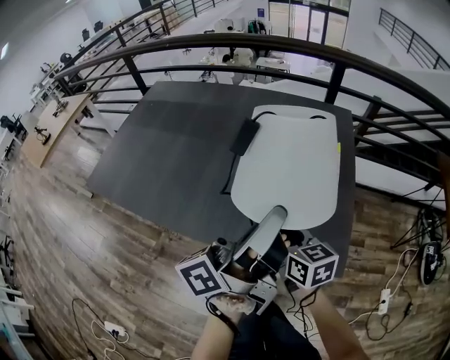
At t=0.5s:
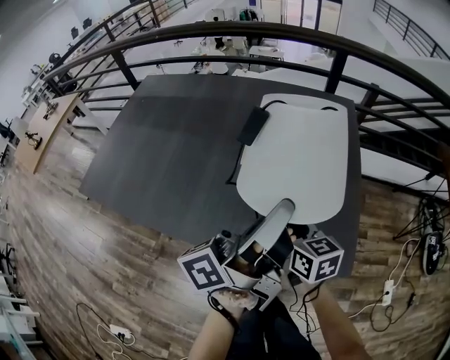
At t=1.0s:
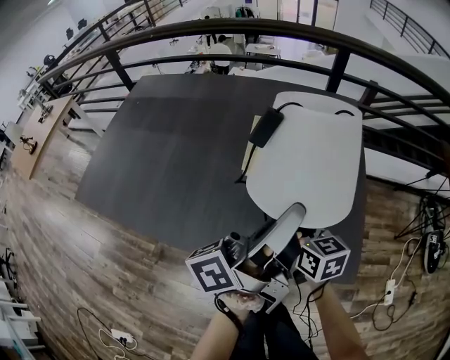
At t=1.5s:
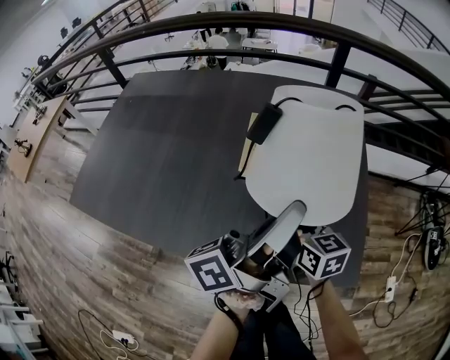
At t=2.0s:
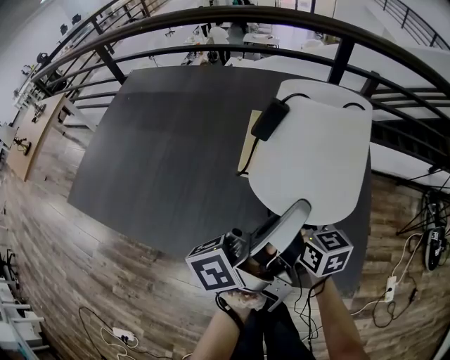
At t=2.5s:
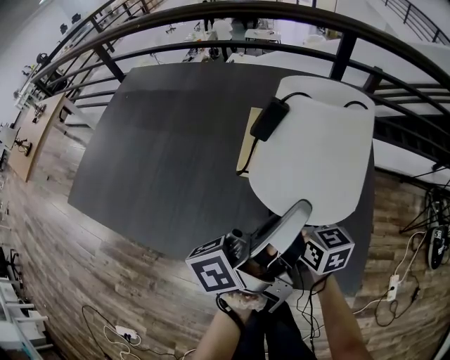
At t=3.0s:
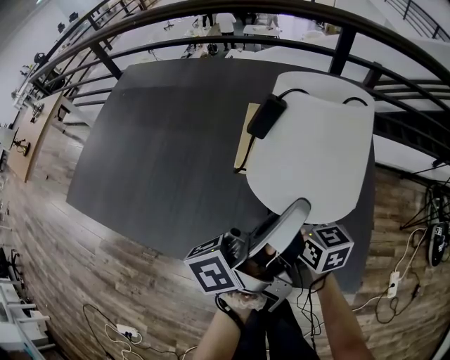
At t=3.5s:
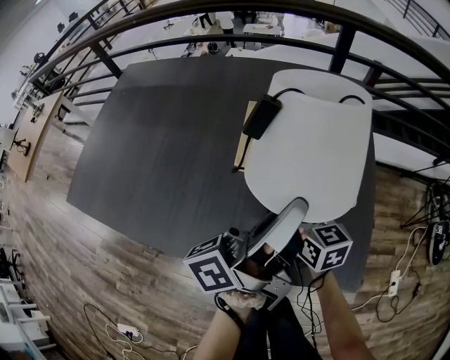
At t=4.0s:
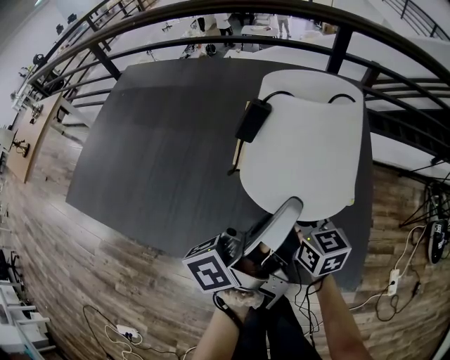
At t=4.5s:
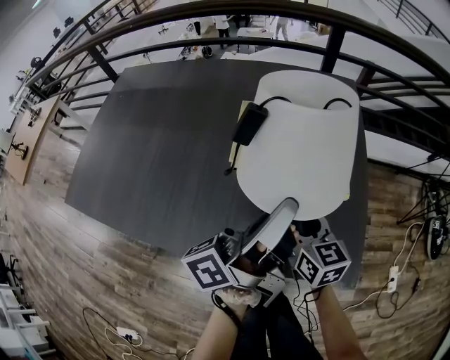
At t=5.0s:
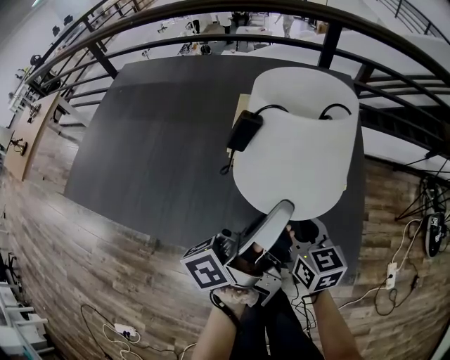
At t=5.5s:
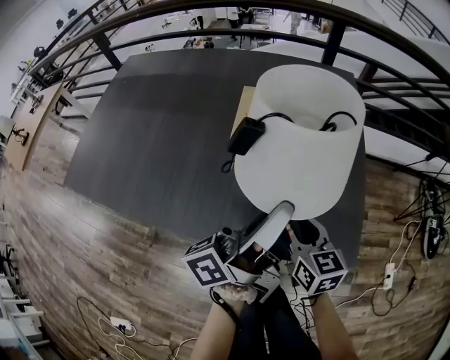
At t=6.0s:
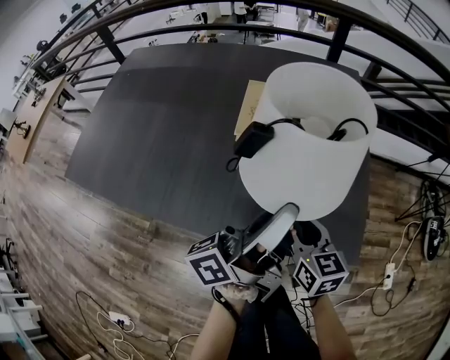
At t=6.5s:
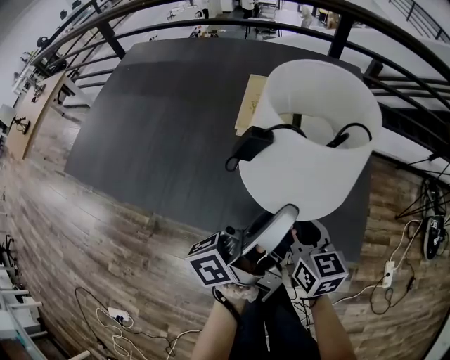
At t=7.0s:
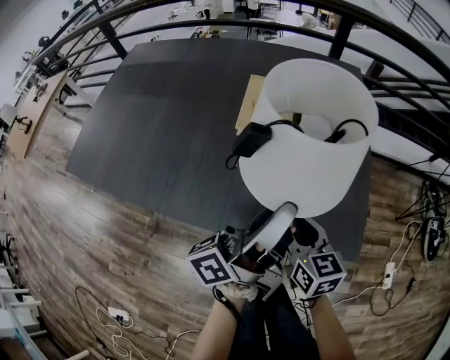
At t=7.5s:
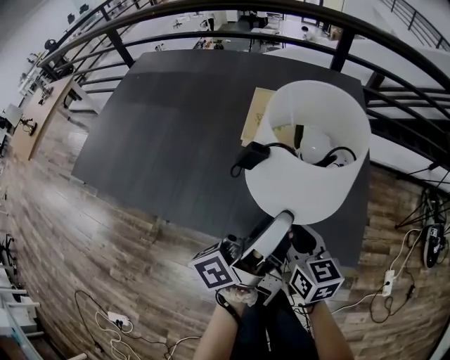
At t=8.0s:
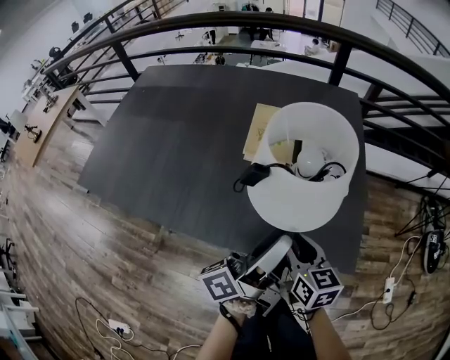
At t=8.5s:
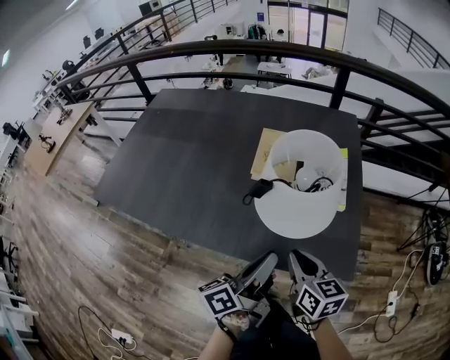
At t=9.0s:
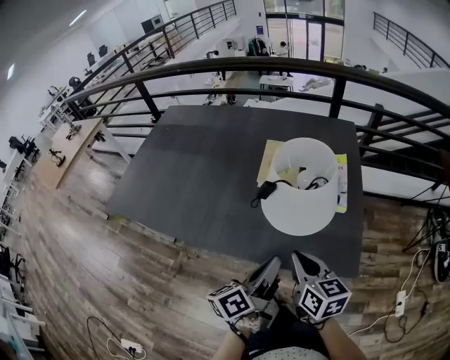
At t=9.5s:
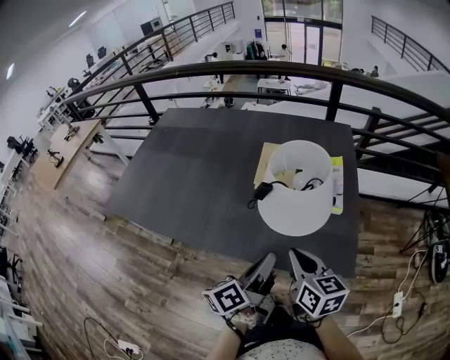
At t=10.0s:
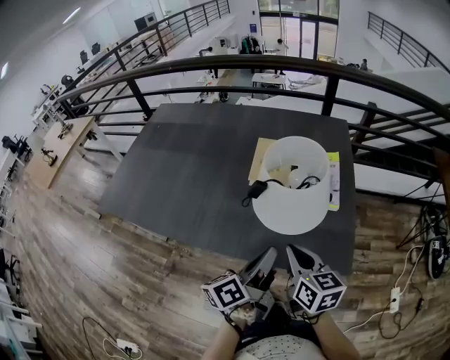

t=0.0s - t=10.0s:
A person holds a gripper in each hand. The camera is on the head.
t=0.0s - t=2.0s: The two grippers go about 15 cm forward and downward.
t=2.0s - t=4.0s: The grippers make only small movements.
t=4.0s - t=6.0s: Both grippers move backward, about 10 cm.
t=6.0s - t=8.0s: The left gripper opens its fingers.
t=8.0s - t=10.0s: The right gripper goes roughly 10 cm upward, and closes. Meanwhile the left gripper rotates approximately 20 degrees, and closes up.

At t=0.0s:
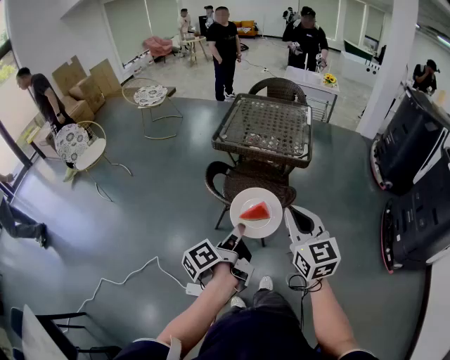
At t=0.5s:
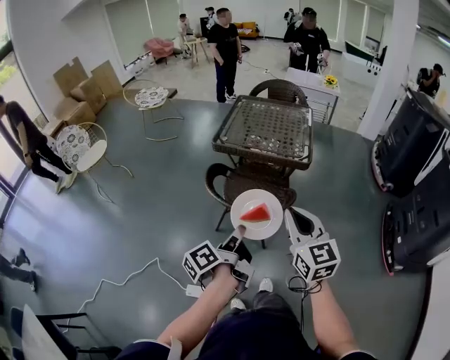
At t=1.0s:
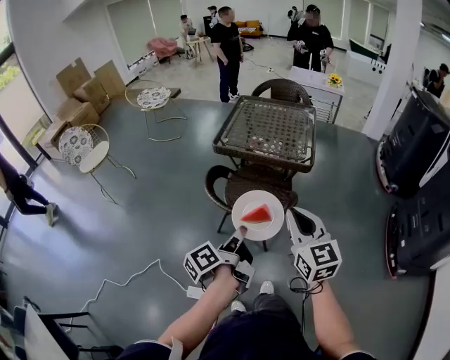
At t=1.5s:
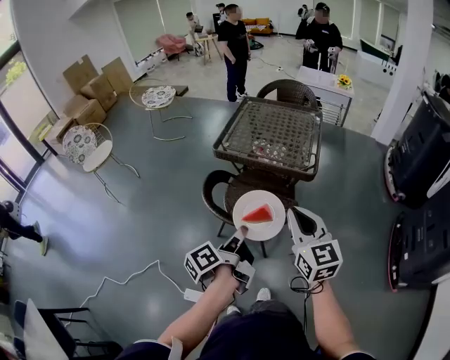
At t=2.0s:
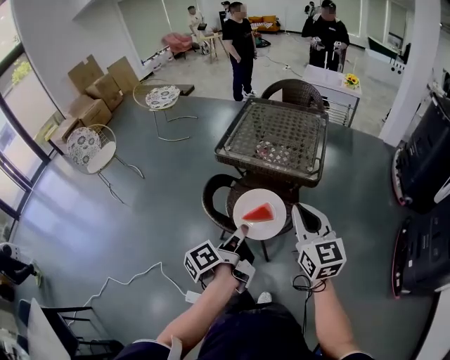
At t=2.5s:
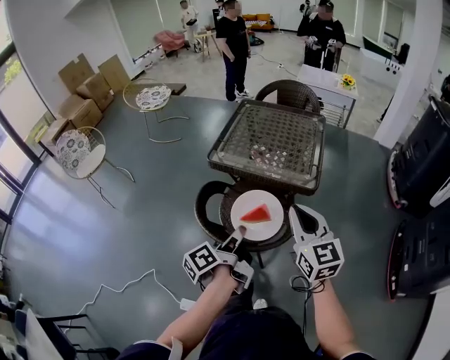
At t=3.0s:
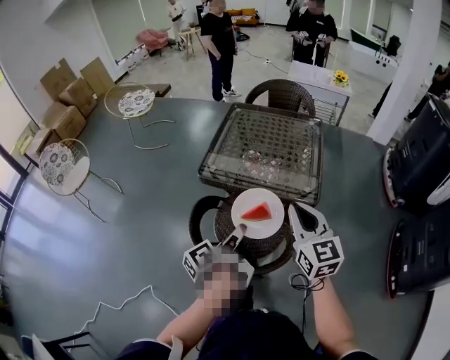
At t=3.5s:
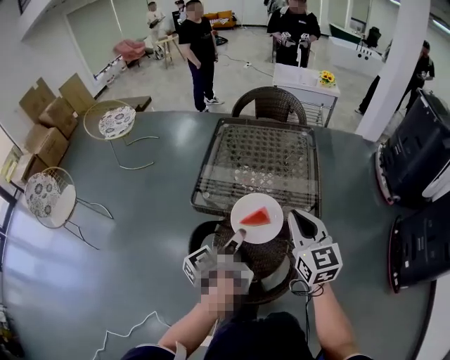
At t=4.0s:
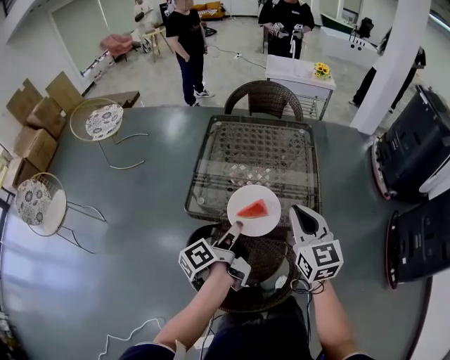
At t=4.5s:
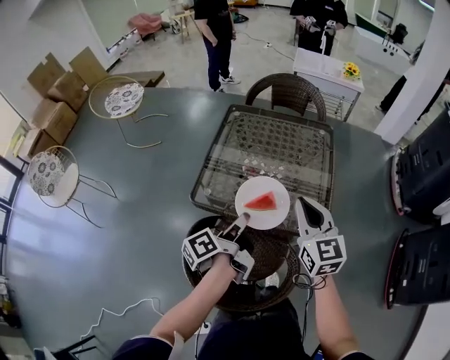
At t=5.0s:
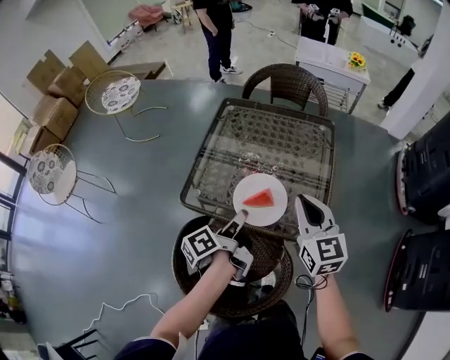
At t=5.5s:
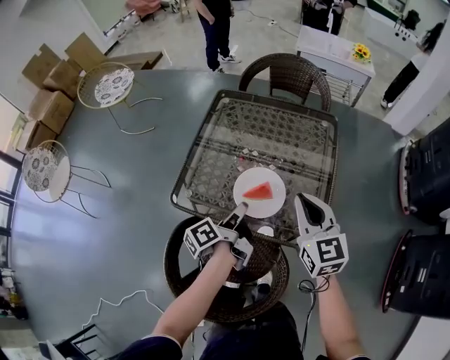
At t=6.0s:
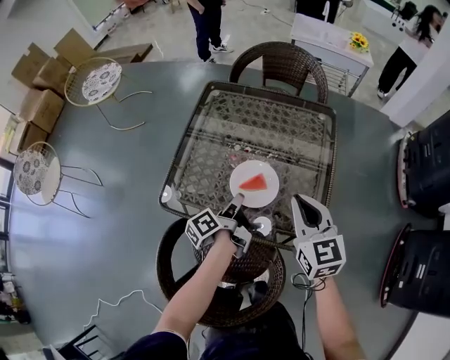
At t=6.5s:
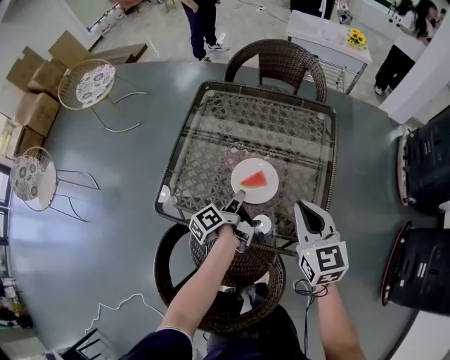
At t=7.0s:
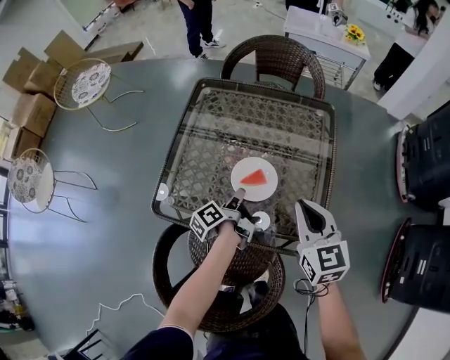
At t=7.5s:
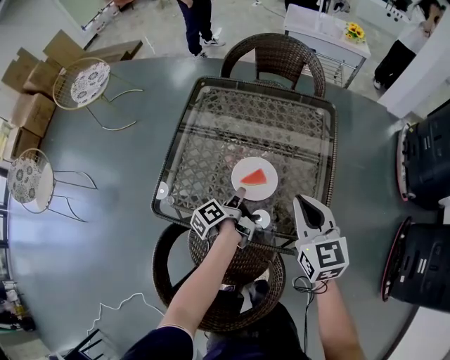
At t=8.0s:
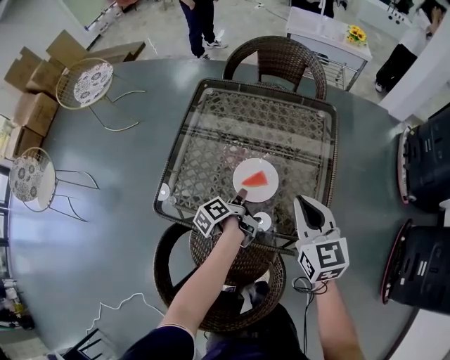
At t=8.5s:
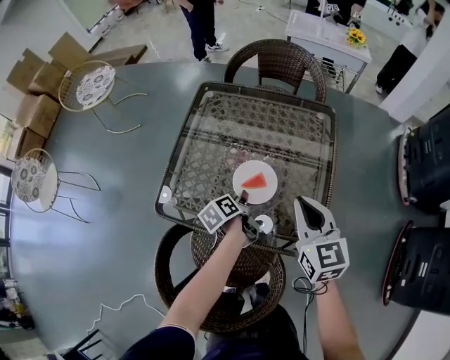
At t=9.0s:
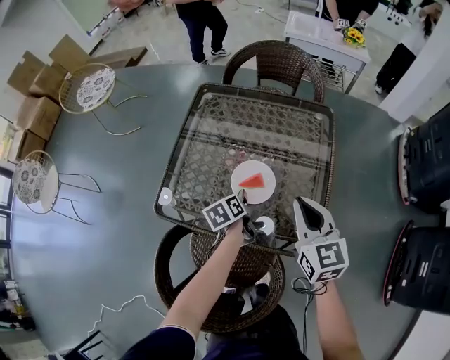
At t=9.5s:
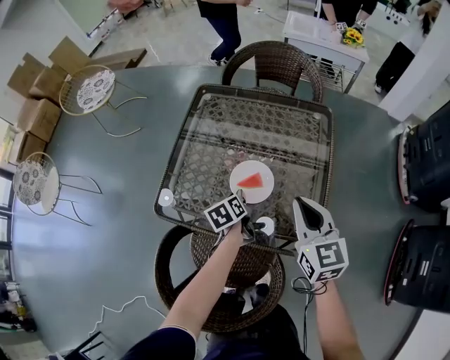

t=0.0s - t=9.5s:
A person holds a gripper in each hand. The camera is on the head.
t=0.0s - t=2.0s: Both grippers travel together forward and to the right, about 15 cm.
t=2.0s - t=4.0s: The two grippers go about 35 cm forward.
t=4.0s - t=5.5s: The grippers both shift forward, downward and to the right by approximately 15 cm.
t=5.5s - t=7.5s: The right gripper shifts about 5 cm downward, while the left gripper is displaced downward and forward by roughly 15 cm.
t=7.5s - t=9.5s: The left gripper turns by some 40 degrees.

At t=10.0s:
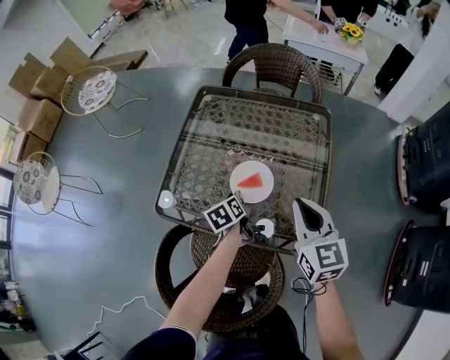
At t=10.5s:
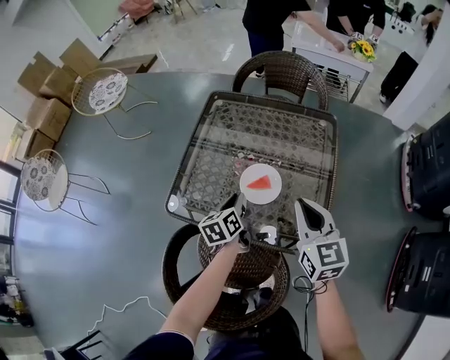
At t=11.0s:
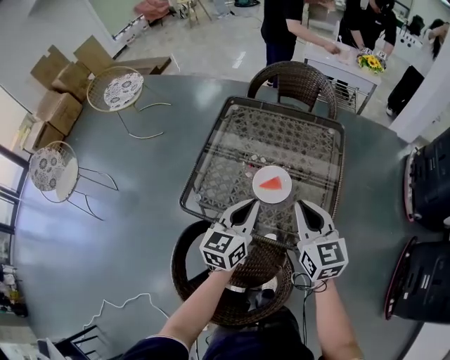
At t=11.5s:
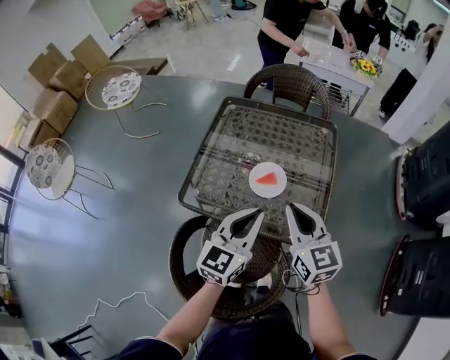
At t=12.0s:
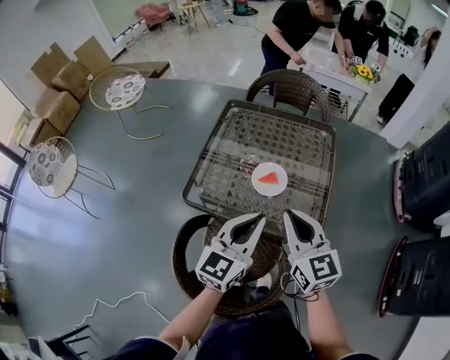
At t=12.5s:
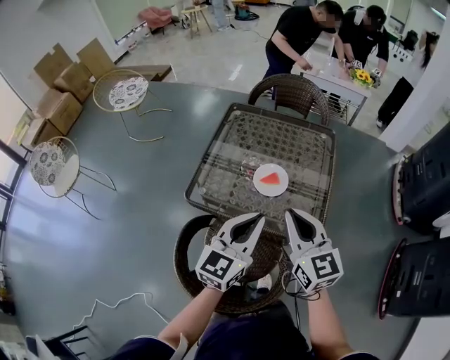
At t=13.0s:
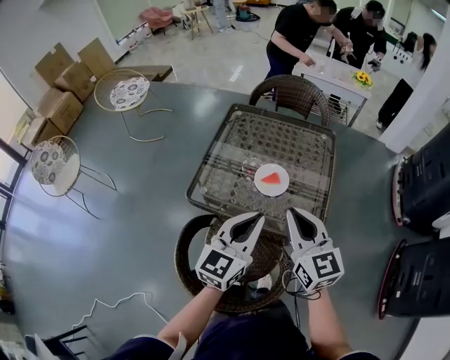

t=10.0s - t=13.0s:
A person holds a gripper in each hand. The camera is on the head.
t=10.0s - t=11.5s: The left gripper travels upward and backward by some 30 cm, and tips its fingers upward by approximately 40 degrees. The right gripper travels to the left, upward and backward by approximately 10 cm.
t=11.5s - t=13.0s: The right gripper goes approximately 5 cm backward and upward. Meanwhile the left gripper shifts by about 5 cm.

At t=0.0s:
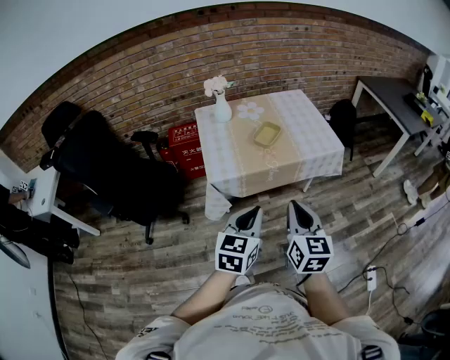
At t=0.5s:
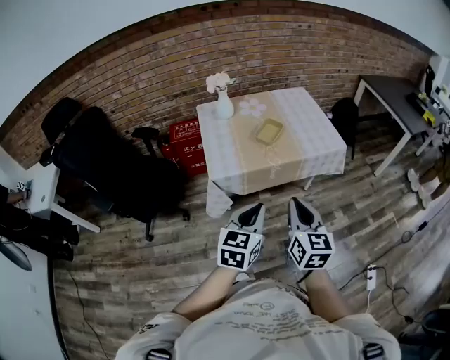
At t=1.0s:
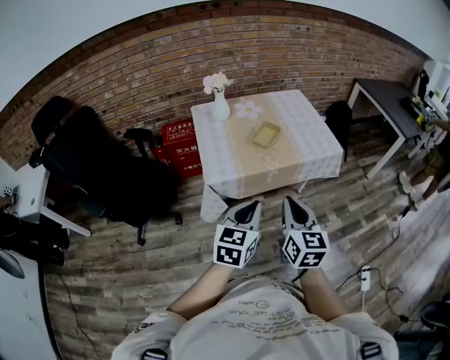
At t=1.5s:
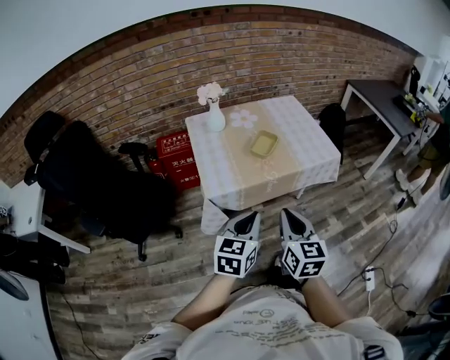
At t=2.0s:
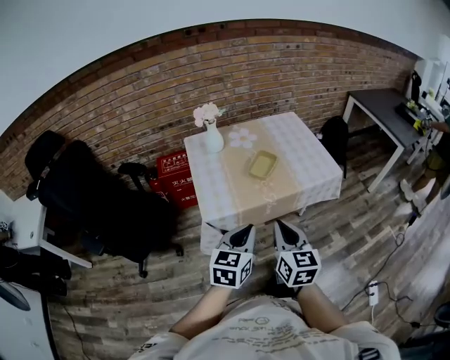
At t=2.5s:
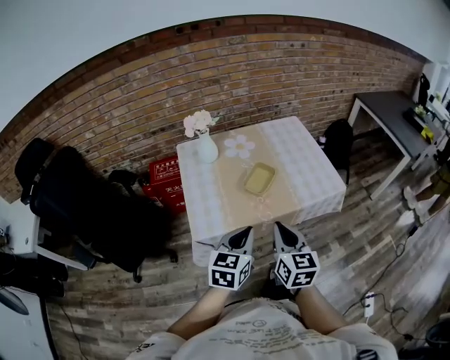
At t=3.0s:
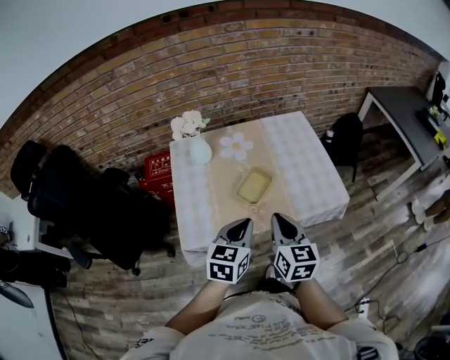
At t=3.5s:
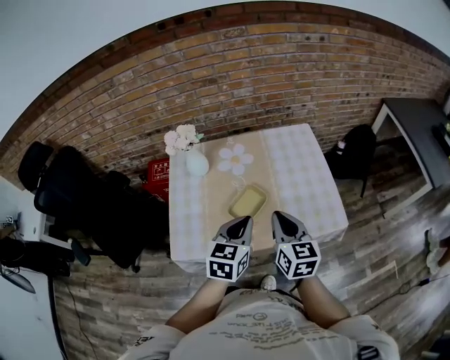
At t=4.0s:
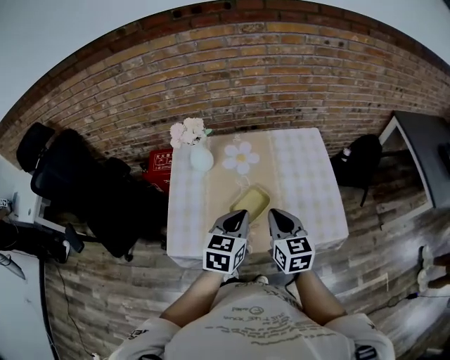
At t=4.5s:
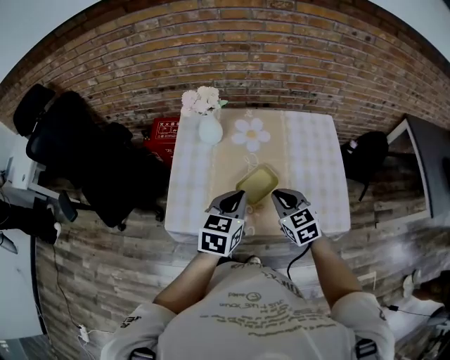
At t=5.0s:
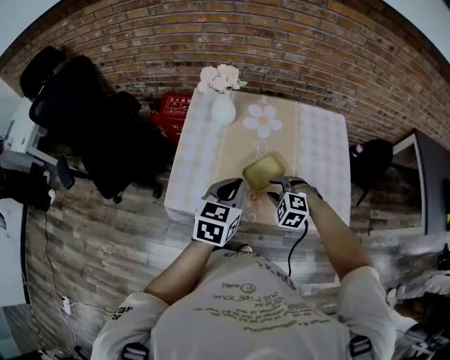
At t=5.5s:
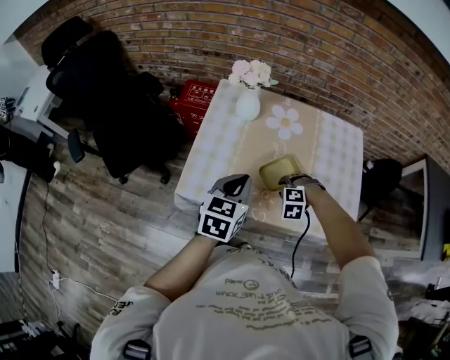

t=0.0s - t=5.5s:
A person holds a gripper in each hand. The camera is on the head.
t=0.0s - t=2.0s: The left gripper travels forward by about 10 cm. Meanwhile the right gripper goes about 10 cm forward and to the left.
t=2.0s - t=3.5s: Both grippers travel together forward, about 35 cm.
t=3.5s - t=5.5s: The right gripper shifts some 25 cm downward, twists approximately 100 degrees counterclockwise, seen from behind, and opens up. Meanwhile the left gripper shifts by about 15 cm.
